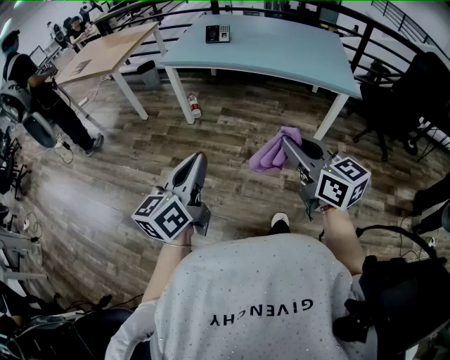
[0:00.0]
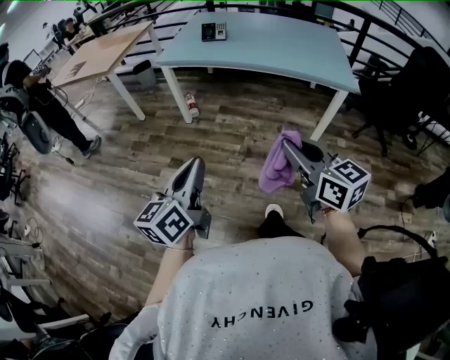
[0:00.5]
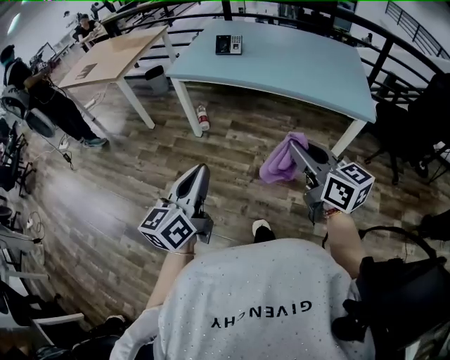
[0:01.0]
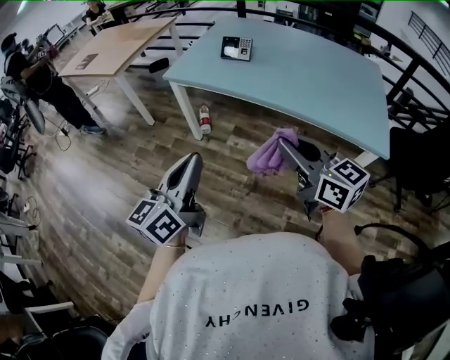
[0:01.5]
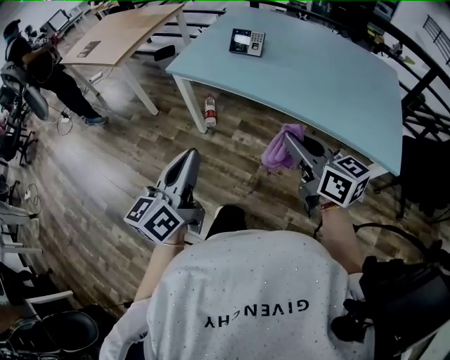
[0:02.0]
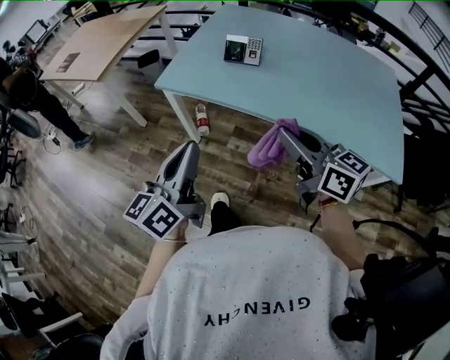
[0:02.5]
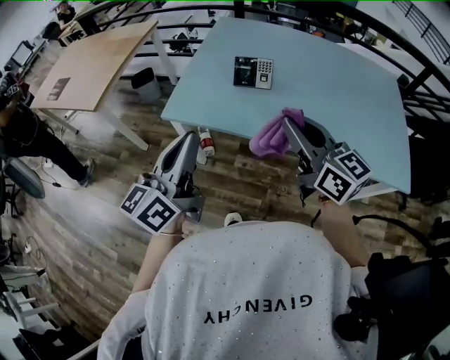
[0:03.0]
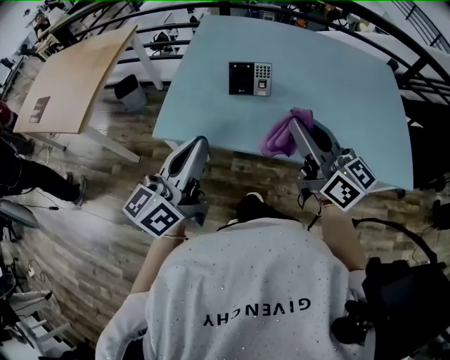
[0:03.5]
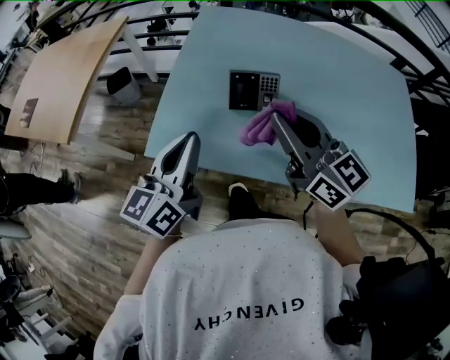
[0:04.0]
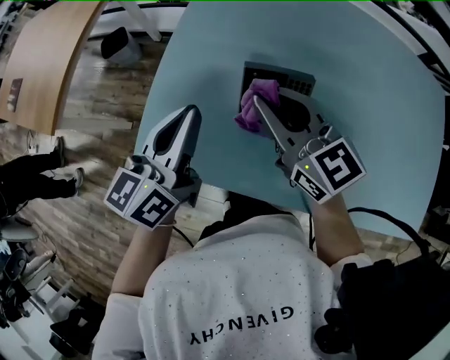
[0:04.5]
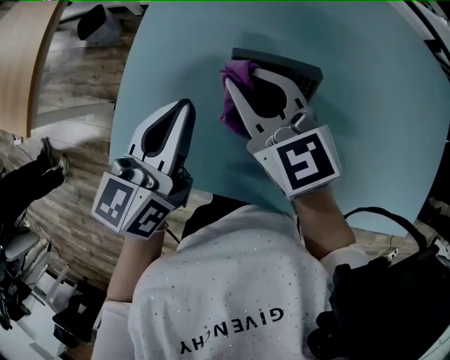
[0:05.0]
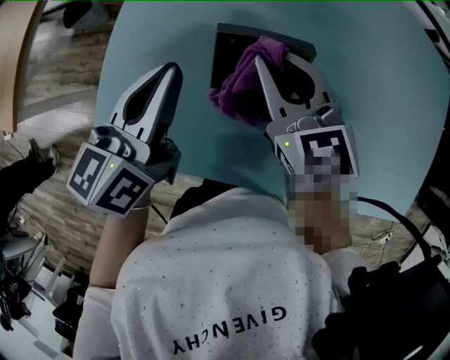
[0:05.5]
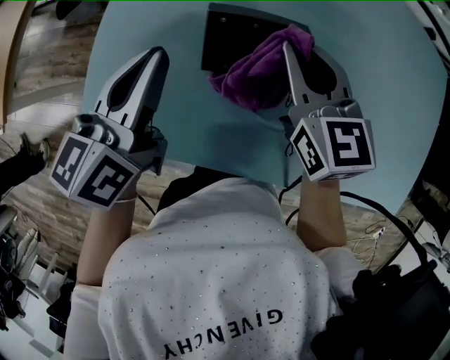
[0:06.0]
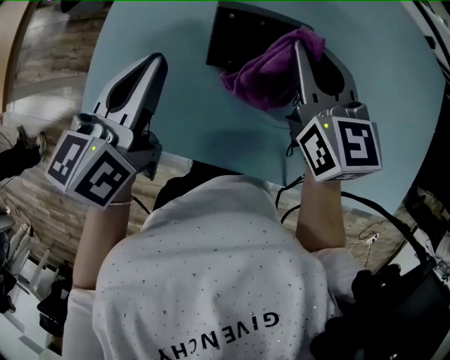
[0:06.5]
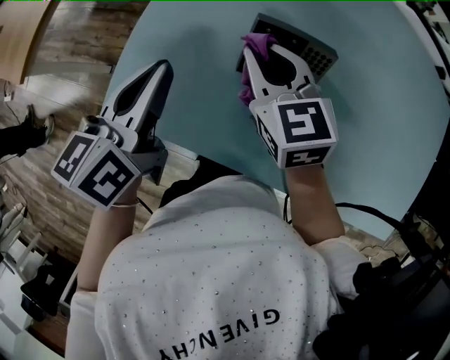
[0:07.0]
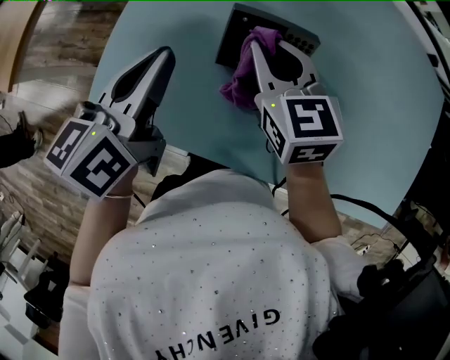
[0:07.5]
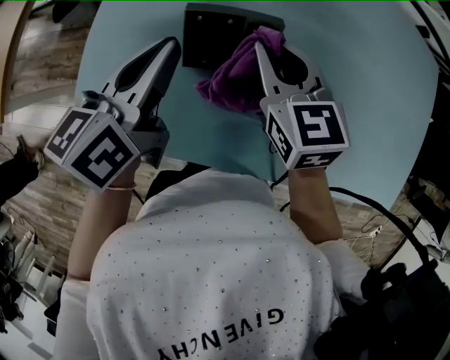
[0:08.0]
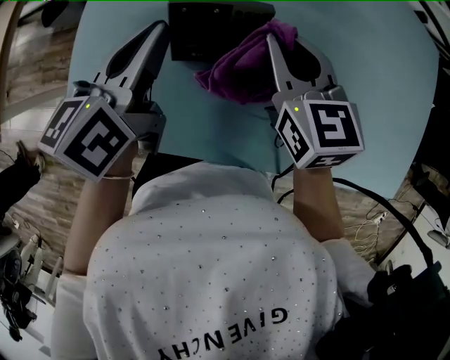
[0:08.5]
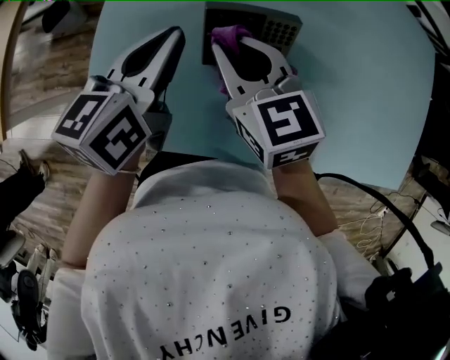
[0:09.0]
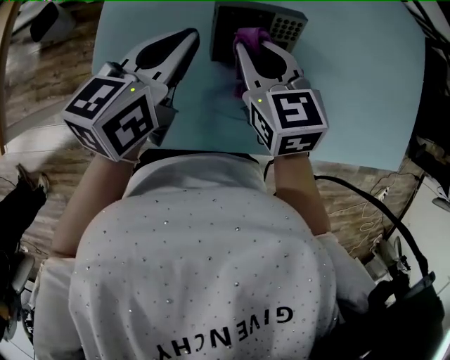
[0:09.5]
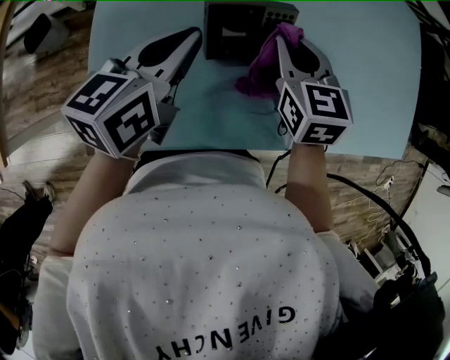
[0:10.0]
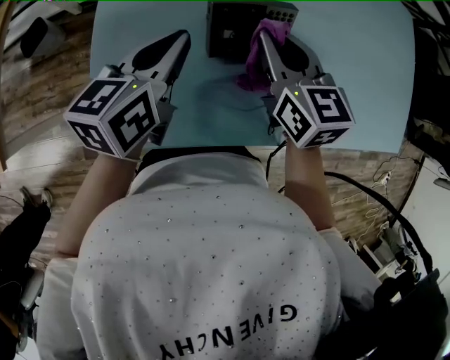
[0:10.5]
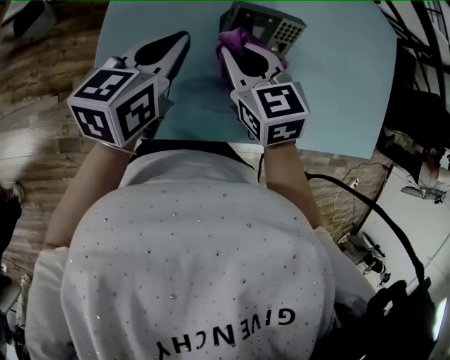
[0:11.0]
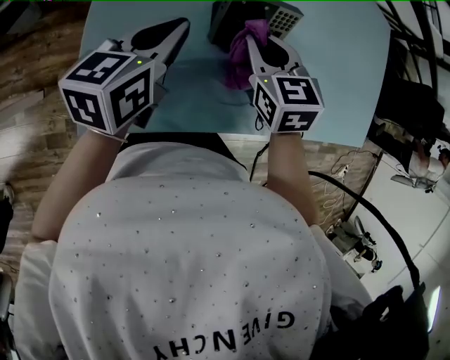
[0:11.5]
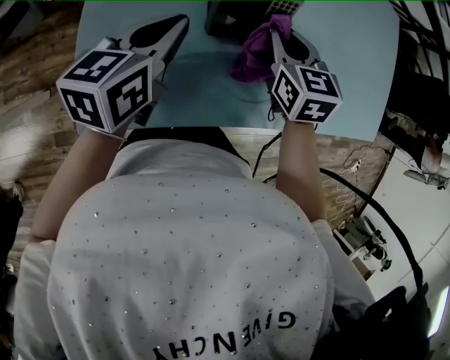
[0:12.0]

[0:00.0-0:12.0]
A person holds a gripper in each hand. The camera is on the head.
0:00.0 to 0:02.0: Both grippers move forward, approximately 35 cm.
0:02.0 to 0:04.0: The two grippers travel together, forward, some 40 cm. The right gripper swivels some 20 degrees.
0:04.0 to 0:06.0: The left gripper heads forward and downward, covering approximately 20 cm. Meanwhile the right gripper moves downward and forward, about 25 cm, and rotates about 30 degrees.
0:06.0 to 0:08.0: The right gripper moves some 10 cm to the left and comes back.
0:08.0 to 0:10.0: The left gripper rotates about 20 degrees, while the right gripper travels to the left and back again, some 10 cm each way, and turns by about 20 degrees.
0:10.0 to 0:12.0: The left gripper ends up roughly 5 cm from where it was; the right gripper goes to the left and returns, approximately 10 cm each way.

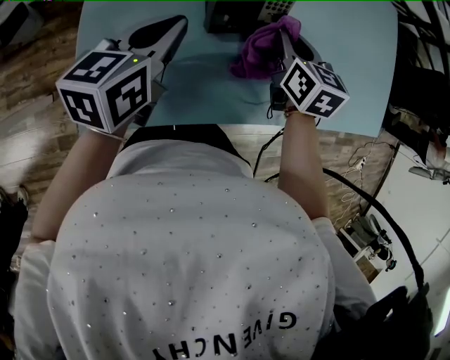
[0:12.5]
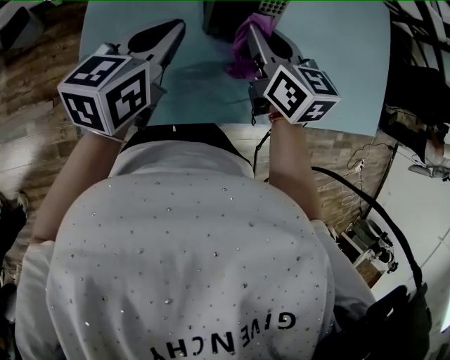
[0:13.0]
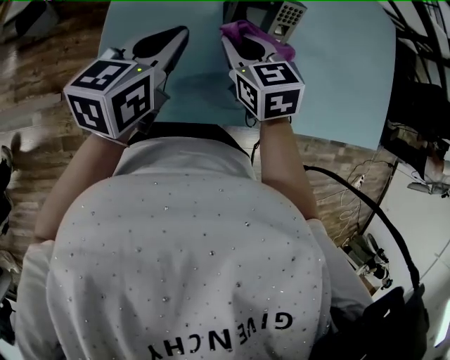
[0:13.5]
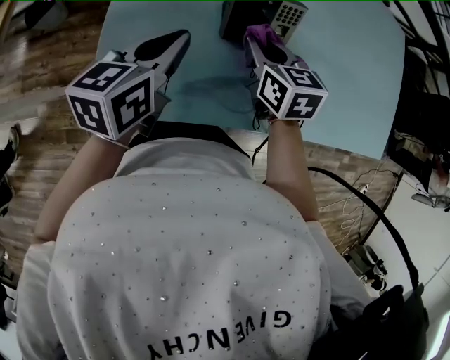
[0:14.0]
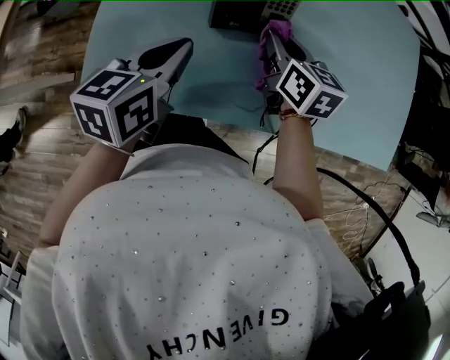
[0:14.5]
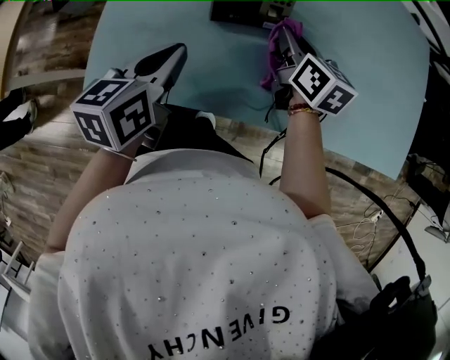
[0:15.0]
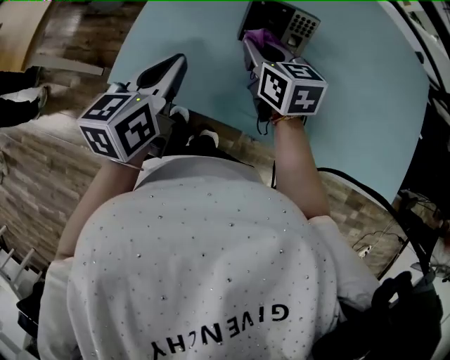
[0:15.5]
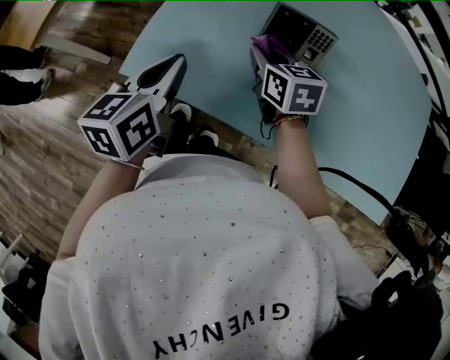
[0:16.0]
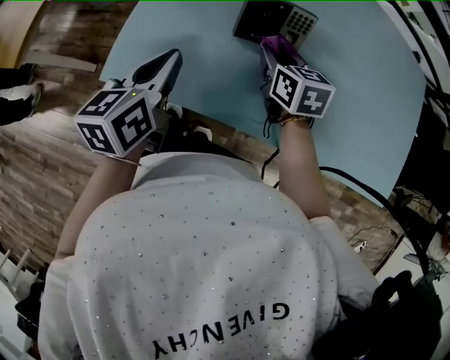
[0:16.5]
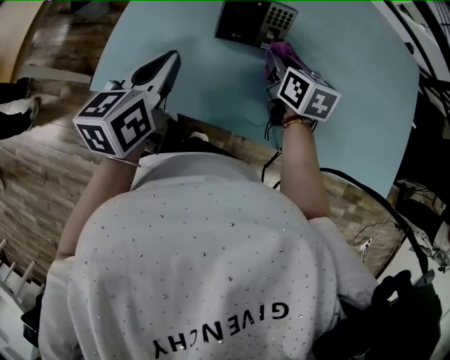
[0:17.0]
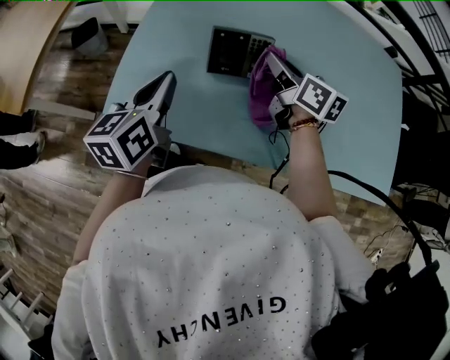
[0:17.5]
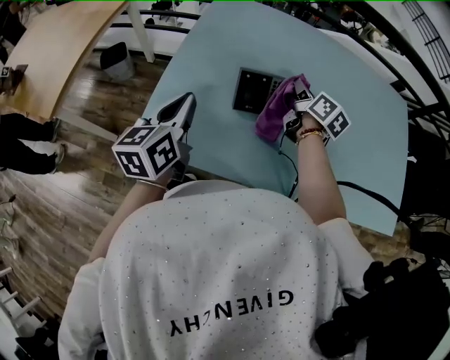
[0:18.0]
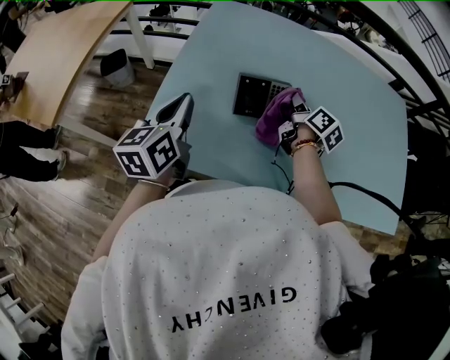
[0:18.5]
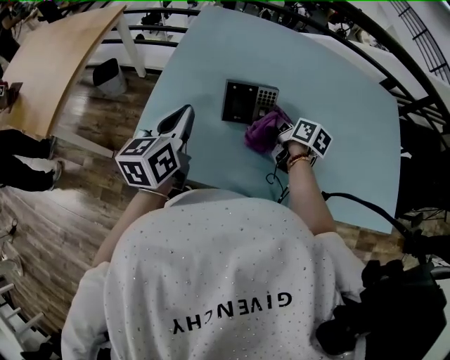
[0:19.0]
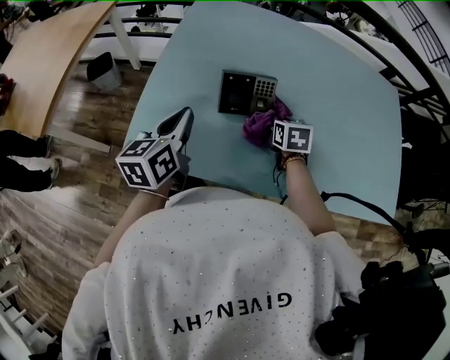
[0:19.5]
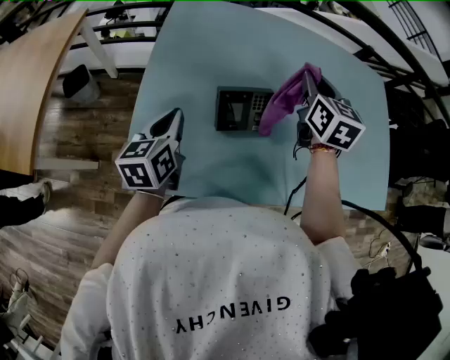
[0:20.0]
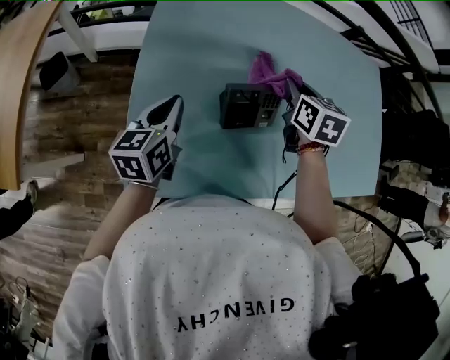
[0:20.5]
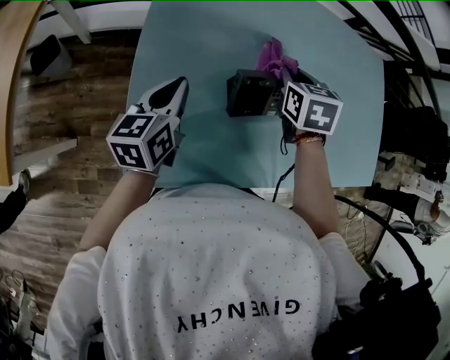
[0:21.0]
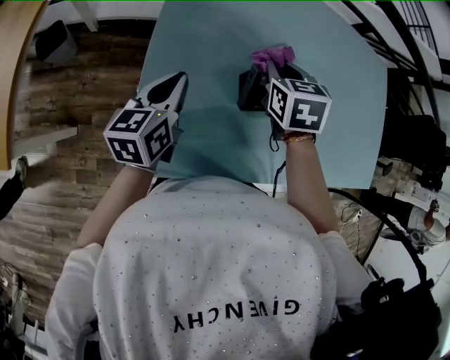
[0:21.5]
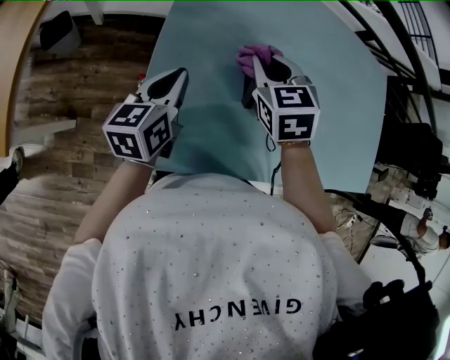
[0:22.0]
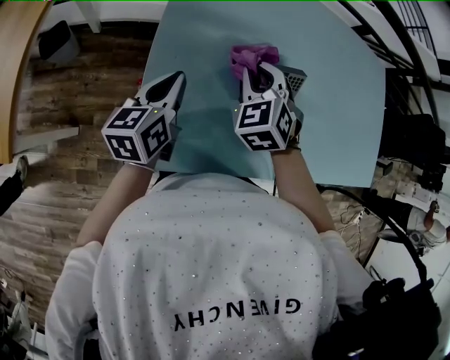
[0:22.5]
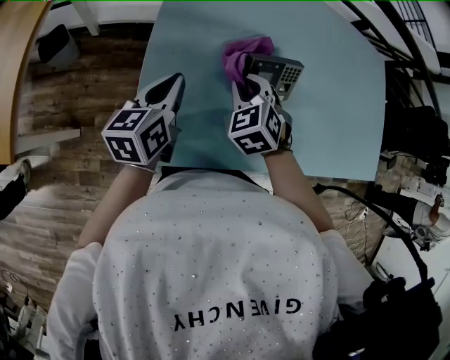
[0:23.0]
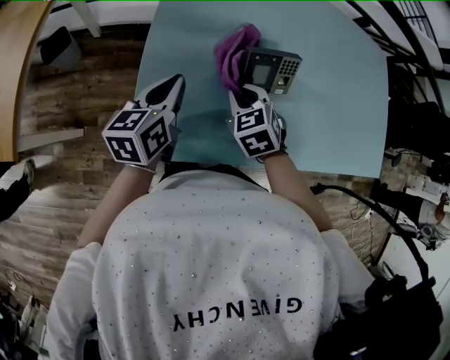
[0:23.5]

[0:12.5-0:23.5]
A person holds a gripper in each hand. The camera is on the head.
0:12.5 to 0:14.5: The right gripper reaches some 15 cm to the left, then returns. The left gripper travels backward by approximately 5 cm.
0:14.5 to 0:16.0: The left gripper travels to the left and backward by approximately 10 cm, and turns by some 30 degrees. Meanwhile the right gripper goes roughly 10 cm to the left, and rotates approximately 20 degrees.
0:16.0 to 0:18.0: The right gripper travels to the right, upward and forward by some 20 cm, and turns by about 50 degrees, while the left gripper travels upward and forward by some 10 cm.
0:18.0 to 0:20.0: The right gripper is displaced upward by approximately 10 cm, and rotates about 40 degrees, while the left gripper is displaced forward by about 5 cm.
0:20.0 to 0:21.5: The right gripper goes approximately 20 cm to the left and downward, and changes its angle by about 30 degrees. Meanwhile the left gripper travels to the left by approximately 5 cm.
0:21.5 to 0:23.5: The right gripper shifts some 15 cm backward and downward, and changes its angle by roughly 20 degrees.

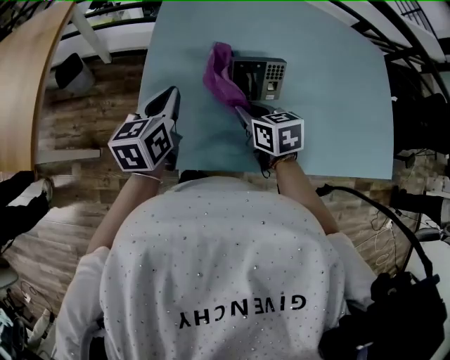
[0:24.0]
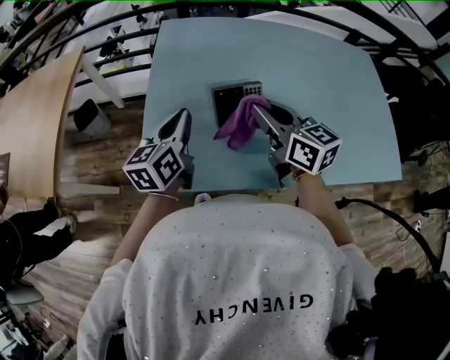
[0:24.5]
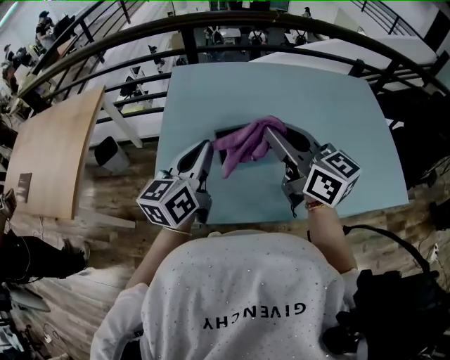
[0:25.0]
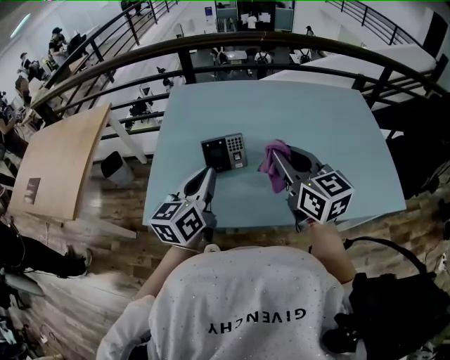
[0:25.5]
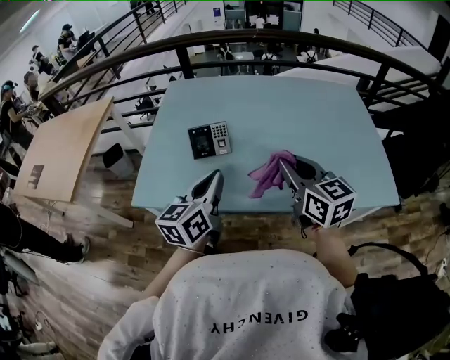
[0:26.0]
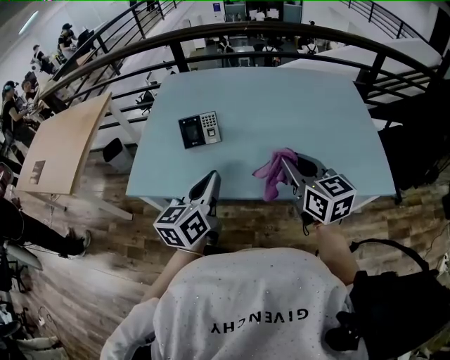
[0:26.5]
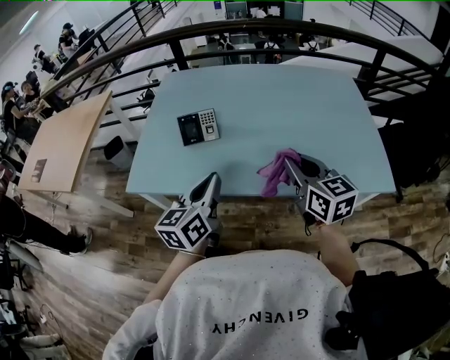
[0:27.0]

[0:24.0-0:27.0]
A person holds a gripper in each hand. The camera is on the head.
0:24.0 to 0:25.5: The right gripper shifts approximately 30 cm upward and to the right, and tilts its fingers about 40 degrees upward, while the left gripper heads to the right, upward and backward, covering approximately 25 cm.
0:25.5 to 0:27.0: The right gripper shifts some 20 cm to the right and backward. The left gripper shifts roughly 20 cm backward and to the right.
